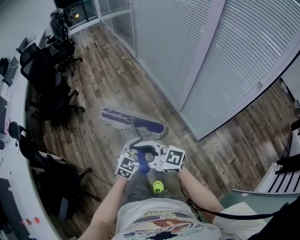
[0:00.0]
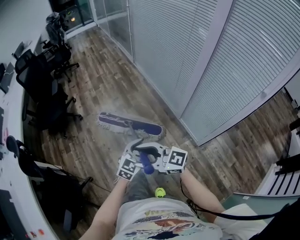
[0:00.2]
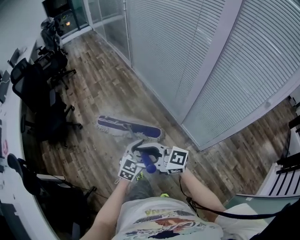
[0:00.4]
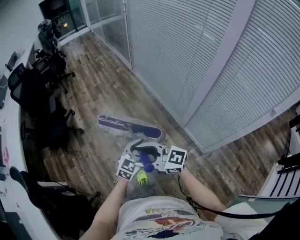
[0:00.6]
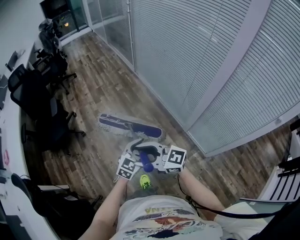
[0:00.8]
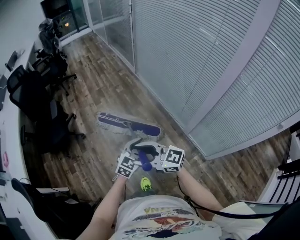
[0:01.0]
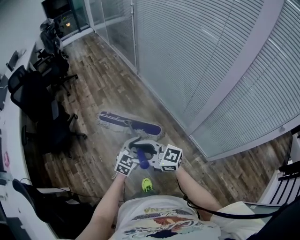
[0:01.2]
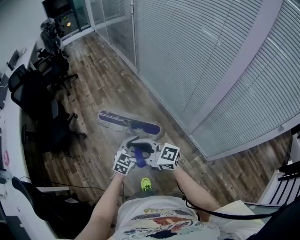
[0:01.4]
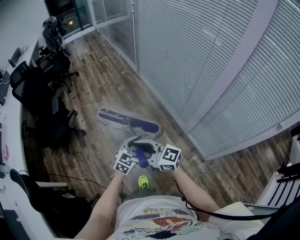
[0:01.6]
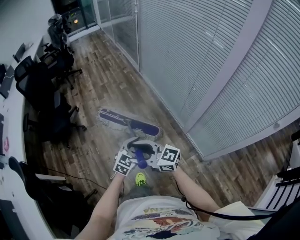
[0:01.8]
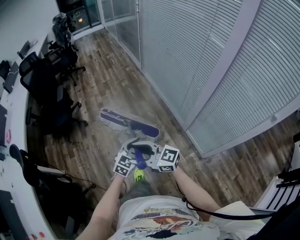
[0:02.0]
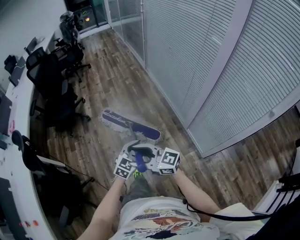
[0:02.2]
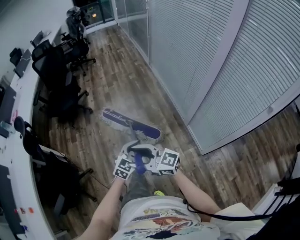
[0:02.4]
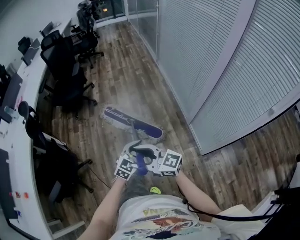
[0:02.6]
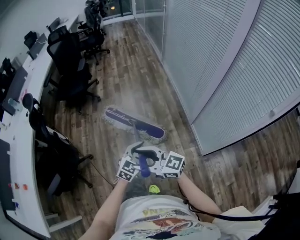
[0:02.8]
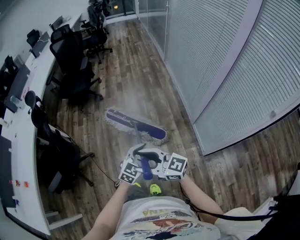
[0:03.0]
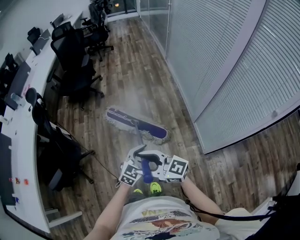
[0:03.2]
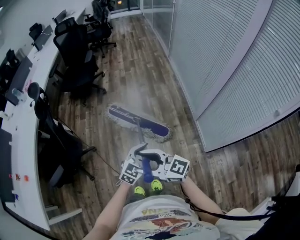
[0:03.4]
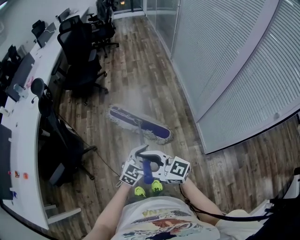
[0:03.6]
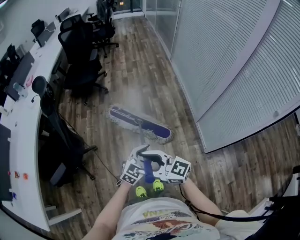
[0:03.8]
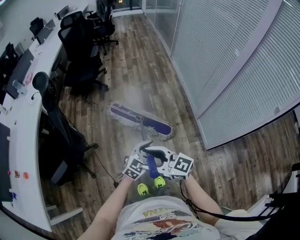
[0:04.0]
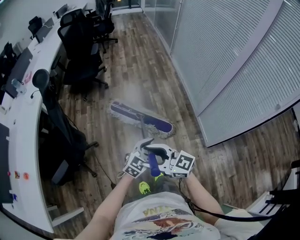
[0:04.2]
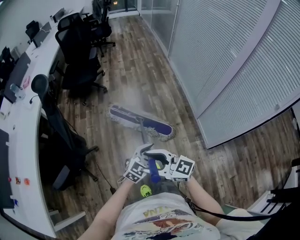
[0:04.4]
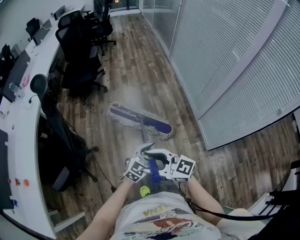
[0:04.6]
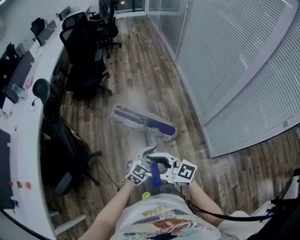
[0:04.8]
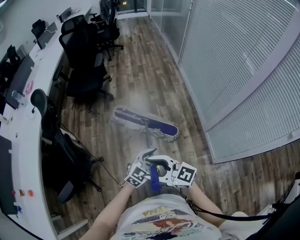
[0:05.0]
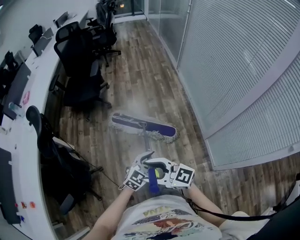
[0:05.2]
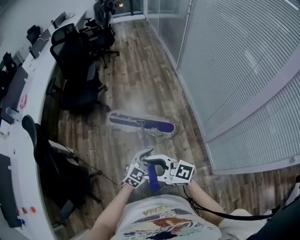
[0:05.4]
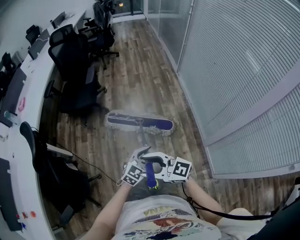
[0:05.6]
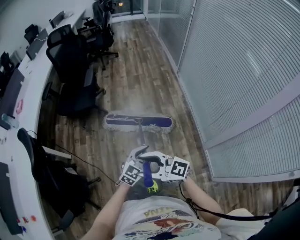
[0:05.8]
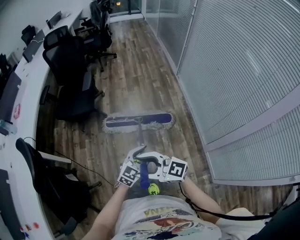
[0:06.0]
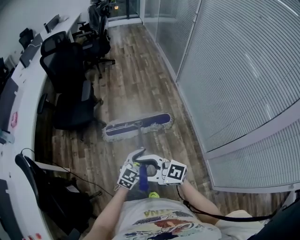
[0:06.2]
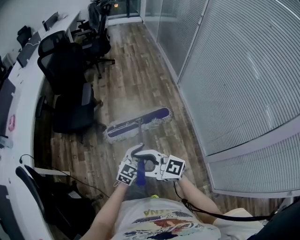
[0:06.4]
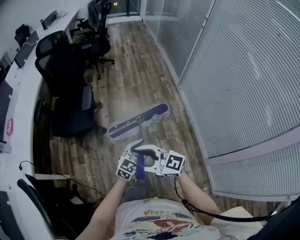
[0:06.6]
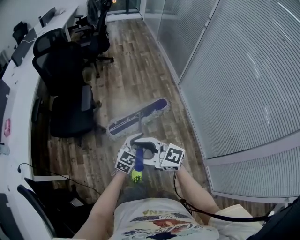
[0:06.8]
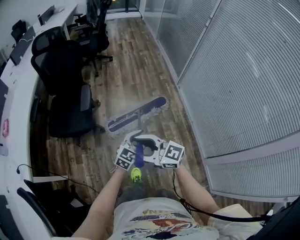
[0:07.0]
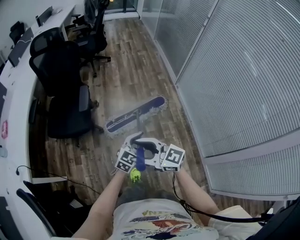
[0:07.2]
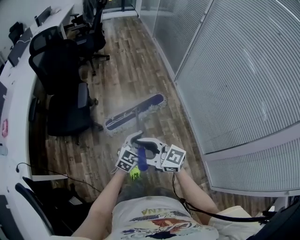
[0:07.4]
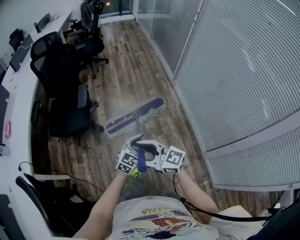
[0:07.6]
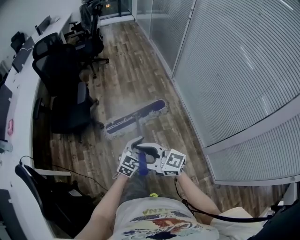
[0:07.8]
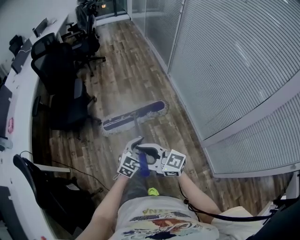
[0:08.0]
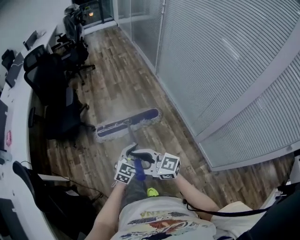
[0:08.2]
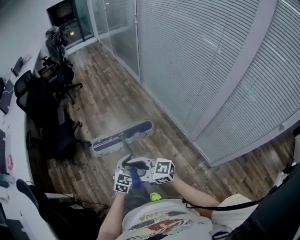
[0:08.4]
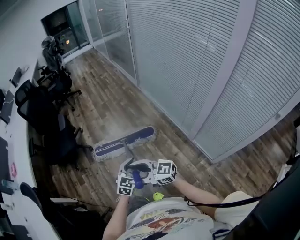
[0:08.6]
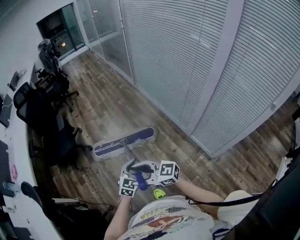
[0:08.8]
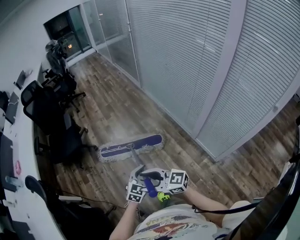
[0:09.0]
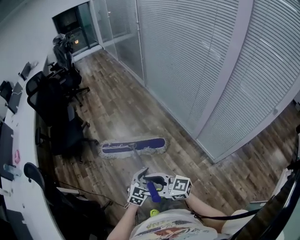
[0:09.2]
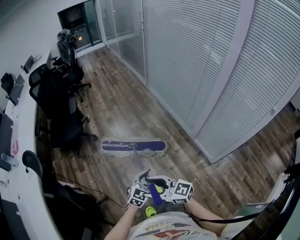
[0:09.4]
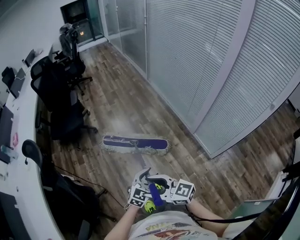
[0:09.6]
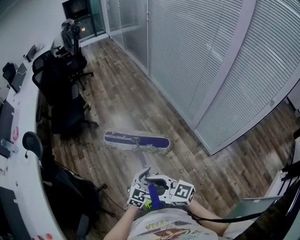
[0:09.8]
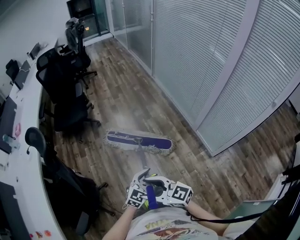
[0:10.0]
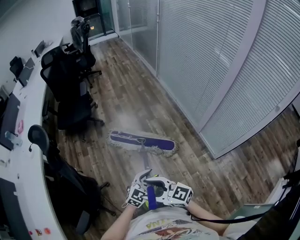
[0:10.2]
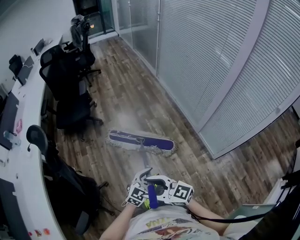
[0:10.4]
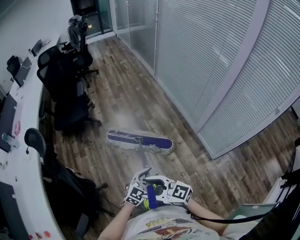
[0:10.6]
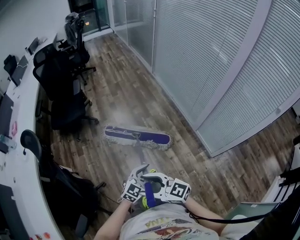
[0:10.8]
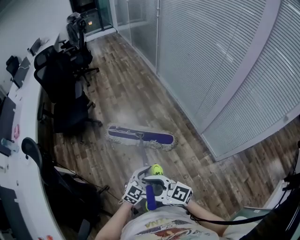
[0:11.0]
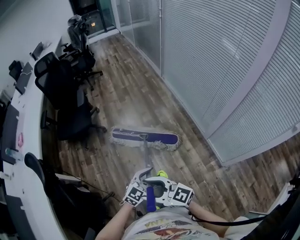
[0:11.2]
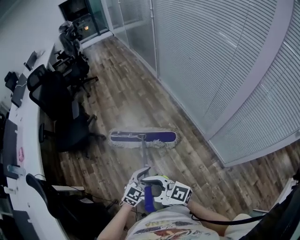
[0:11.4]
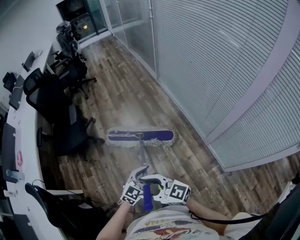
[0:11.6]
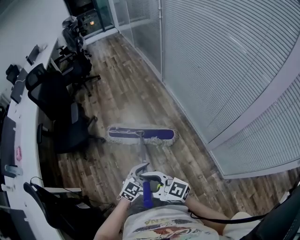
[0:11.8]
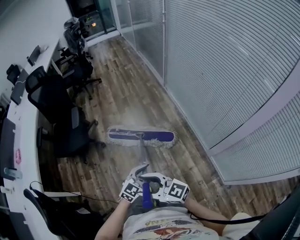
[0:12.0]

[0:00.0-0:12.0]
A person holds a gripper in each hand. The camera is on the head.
0:00.0 to 0:01.6: Both grippers travel together forward, roughly 35 cm.
0:01.6 to 0:03.0: Both grippers travel together backward, approximately 40 cm. The right gripper turns by some 20 degrees.
0:03.0 to 0:04.4: The two grippers go approximately 15 cm to the left.
0:04.4 to 0:06.0: The two grippers travel together, forward, about 50 cm.
0:06.0 to 0:07.6: The grippers both shift forward by approximately 25 cm.
0:07.6 to 0:09.0: The two grippers travel together, backward, about 40 cm.
0:09.0 to 0:10.4: Both grippers travel together backward and to the left, some 20 cm.
0:10.4 to 0:12.0: The two grippers travel together, forward, some 50 cm.

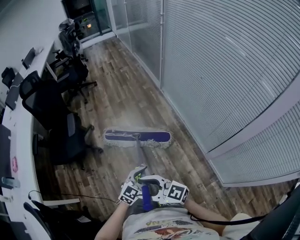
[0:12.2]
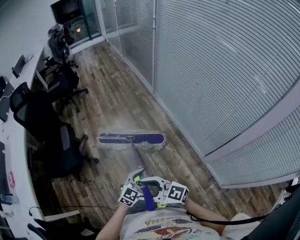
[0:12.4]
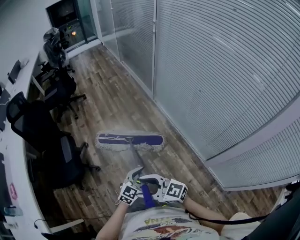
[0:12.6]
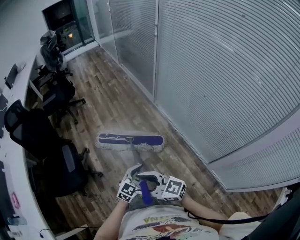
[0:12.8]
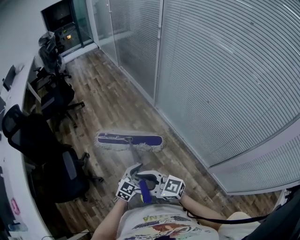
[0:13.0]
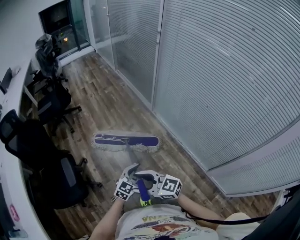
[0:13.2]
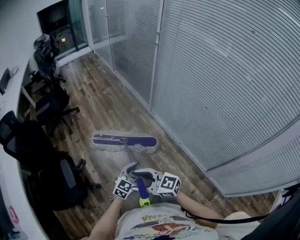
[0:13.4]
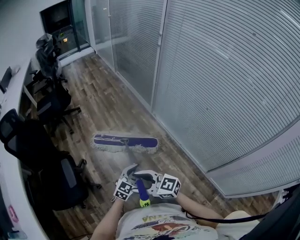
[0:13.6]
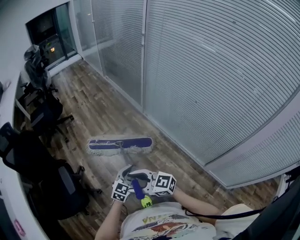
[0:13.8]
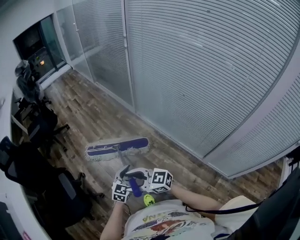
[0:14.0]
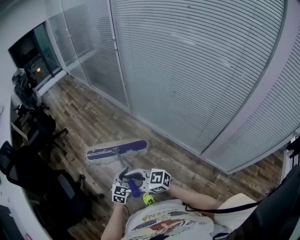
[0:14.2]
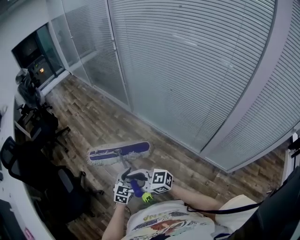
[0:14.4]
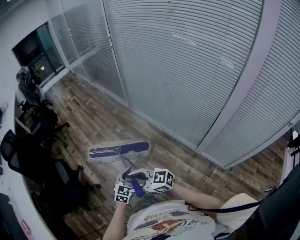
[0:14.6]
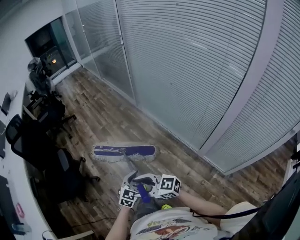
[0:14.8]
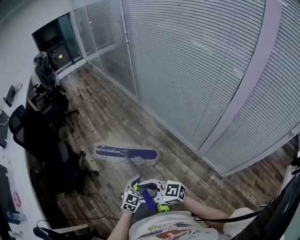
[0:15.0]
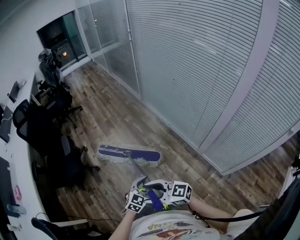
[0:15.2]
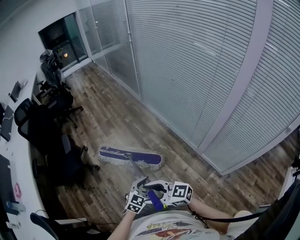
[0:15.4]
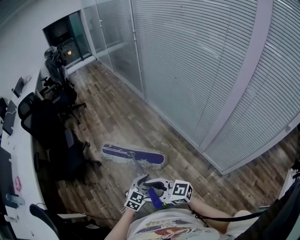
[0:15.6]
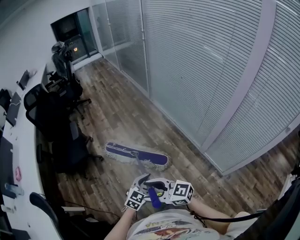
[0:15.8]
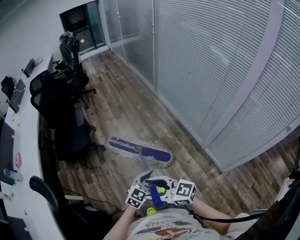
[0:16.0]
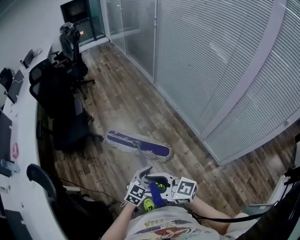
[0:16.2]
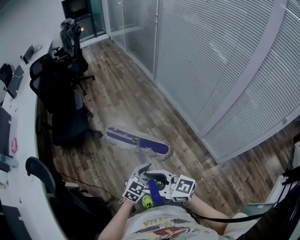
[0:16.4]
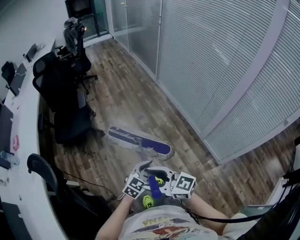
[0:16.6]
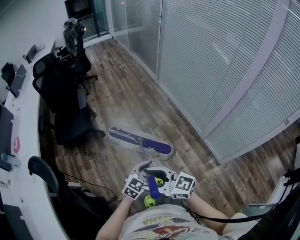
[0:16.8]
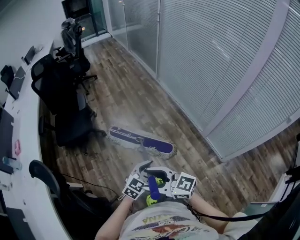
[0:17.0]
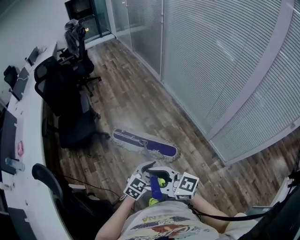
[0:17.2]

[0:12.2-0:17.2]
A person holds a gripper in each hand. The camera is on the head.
0:12.2 to 0:13.8: Both grippers move forward, about 40 cm.
0:13.8 to 0:15.6: The pair of grippers is taken backward, some 60 cm.
0:15.6 to 0:17.2: The two grippers go roughly 15 cm to the left and backward.

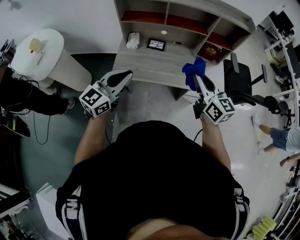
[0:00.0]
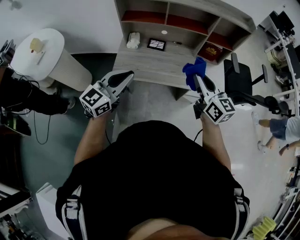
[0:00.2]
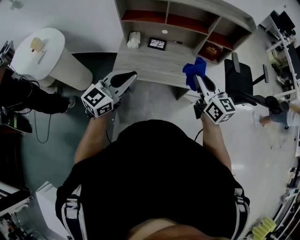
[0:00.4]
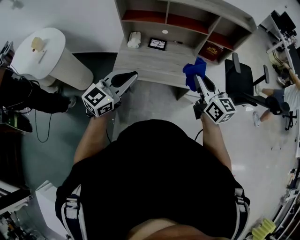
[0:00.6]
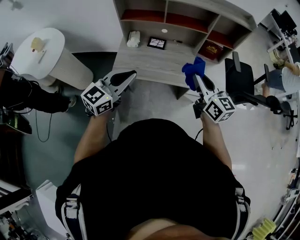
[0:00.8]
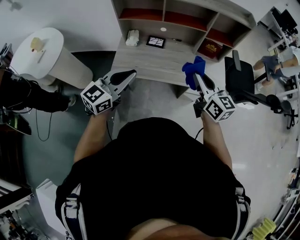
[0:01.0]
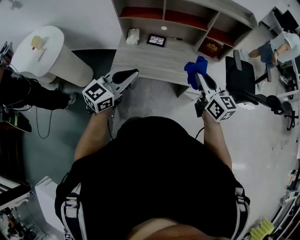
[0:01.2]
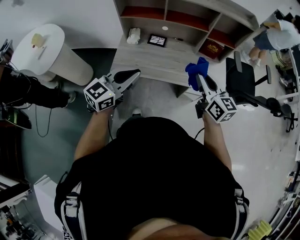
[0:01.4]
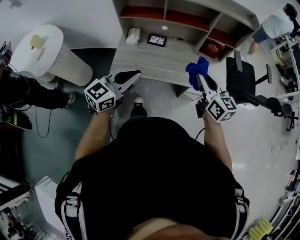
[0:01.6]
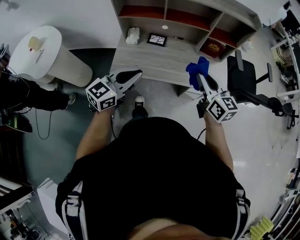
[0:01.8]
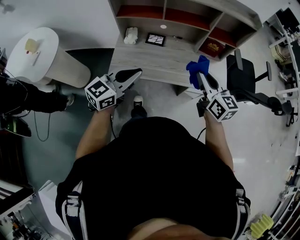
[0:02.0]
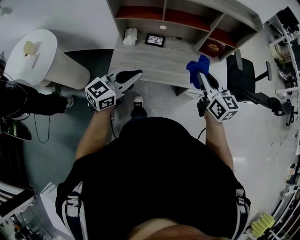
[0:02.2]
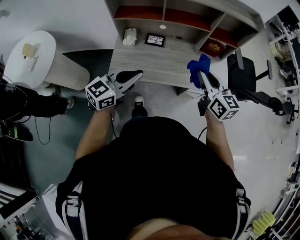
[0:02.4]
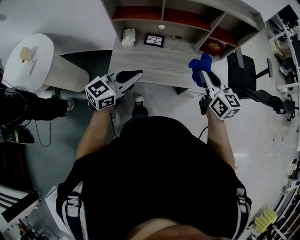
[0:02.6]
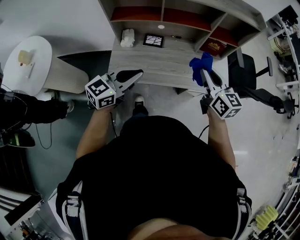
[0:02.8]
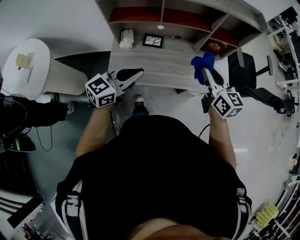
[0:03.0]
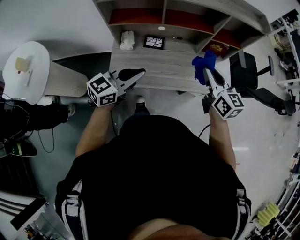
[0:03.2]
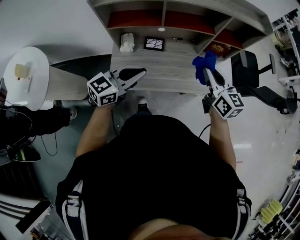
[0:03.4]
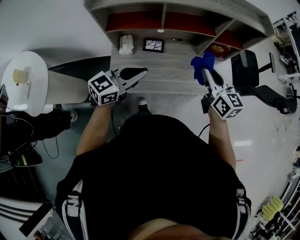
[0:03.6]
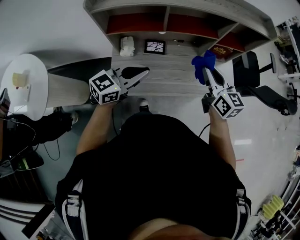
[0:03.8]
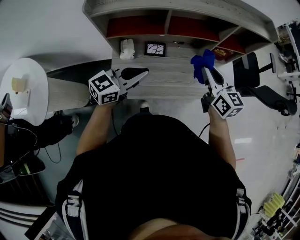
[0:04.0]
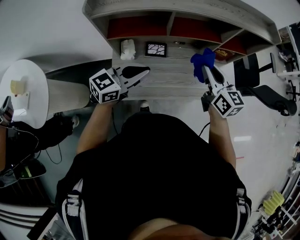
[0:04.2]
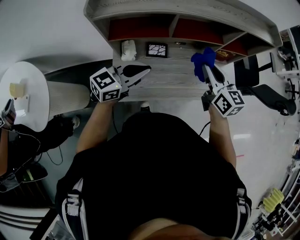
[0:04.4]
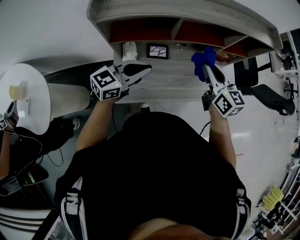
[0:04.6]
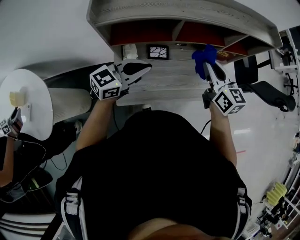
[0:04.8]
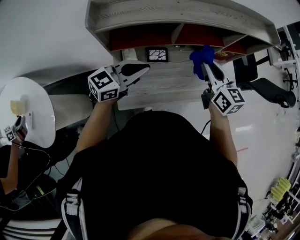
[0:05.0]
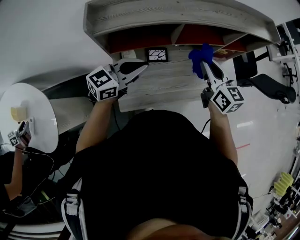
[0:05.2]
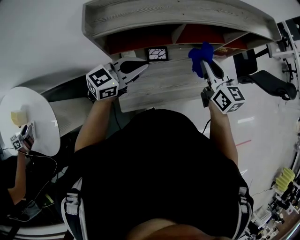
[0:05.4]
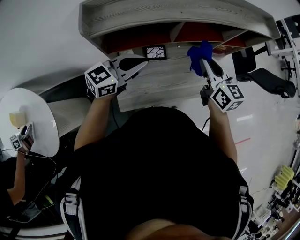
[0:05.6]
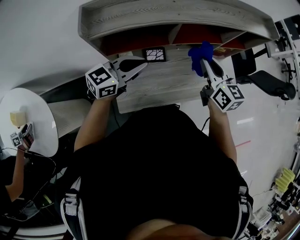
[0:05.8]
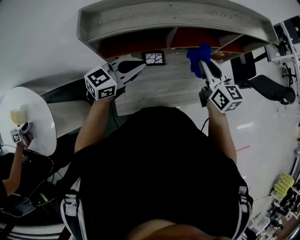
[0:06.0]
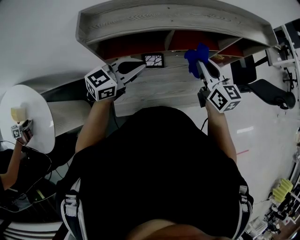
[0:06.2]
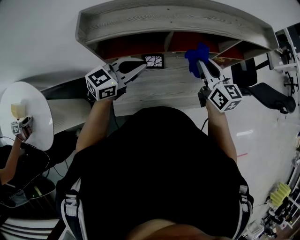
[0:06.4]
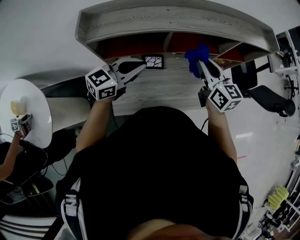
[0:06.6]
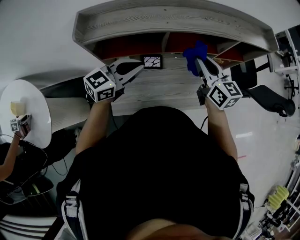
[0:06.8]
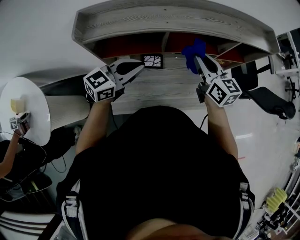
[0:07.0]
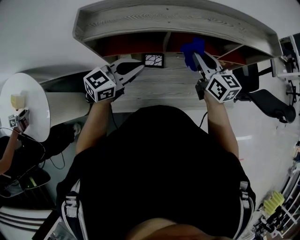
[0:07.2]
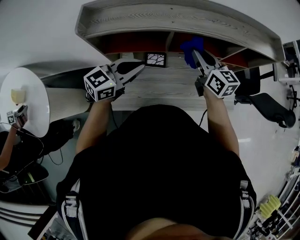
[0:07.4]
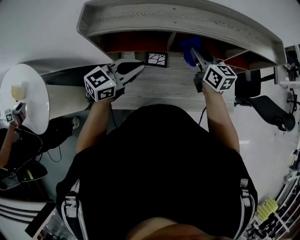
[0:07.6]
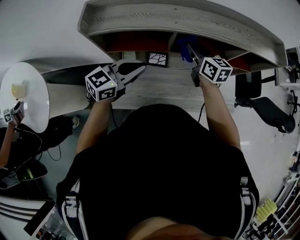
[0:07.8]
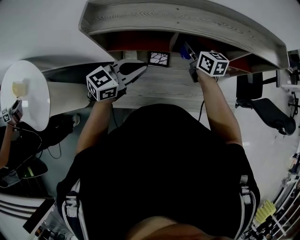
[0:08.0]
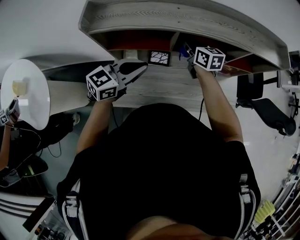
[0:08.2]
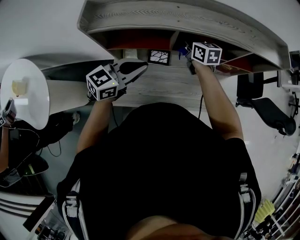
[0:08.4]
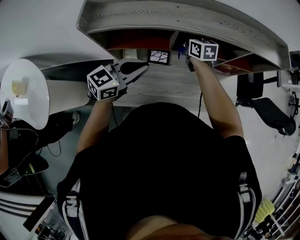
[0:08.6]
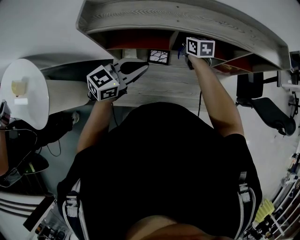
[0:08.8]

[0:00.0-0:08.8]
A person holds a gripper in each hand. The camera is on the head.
0:00.0 to 0:01.4: The right gripper ends up approximately 5 cm from where it was, while the left gripper goes about 5 cm to the right.
0:01.4 to 0:03.0: The grippers both shift forward by approximately 10 cm.
0:03.0 to 0:04.4: The left gripper heads forward and to the left, covering approximately 15 cm. The right gripper heads to the left and forward, covering approximately 15 cm.
0:04.4 to 0:05.8: The right gripper is displaced to the left by some 5 cm. Meanwhile the left gripper is displaced to the left and forward by about 10 cm.
0:05.8 to 0:07.4: The right gripper is displaced forward by about 10 cm.
0:07.4 to 0:08.8: The right gripper goes about 20 cm downward, forward and to the left, and swivels some 20 degrees.
